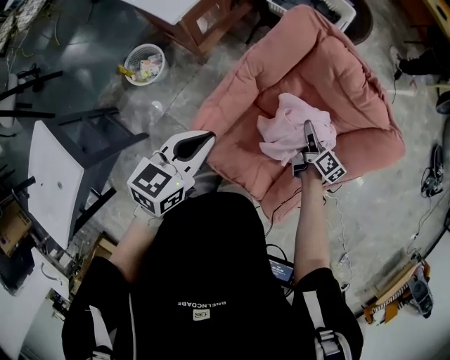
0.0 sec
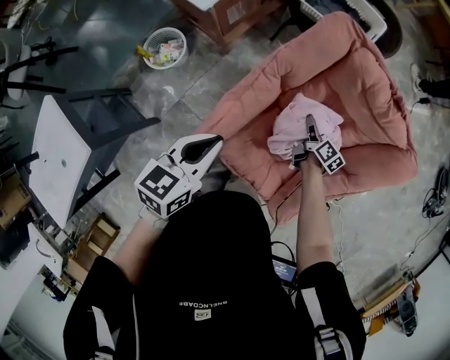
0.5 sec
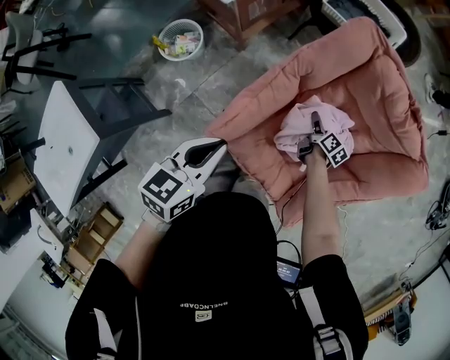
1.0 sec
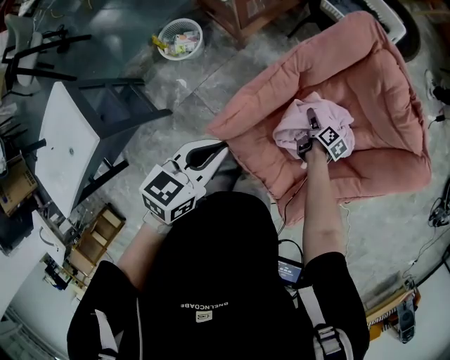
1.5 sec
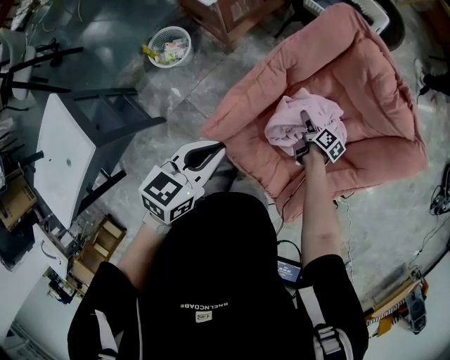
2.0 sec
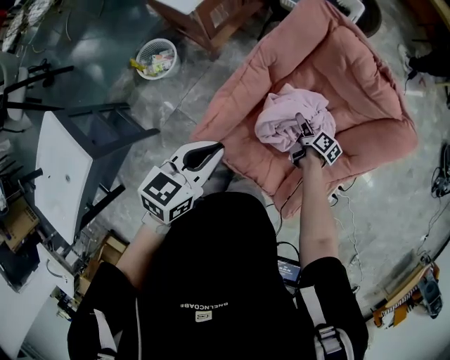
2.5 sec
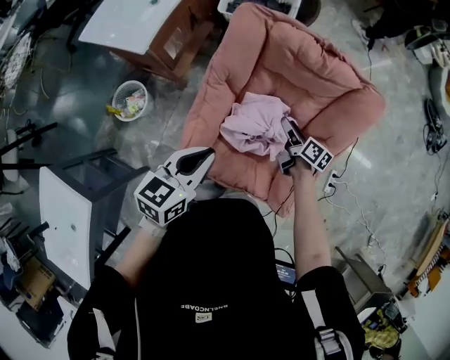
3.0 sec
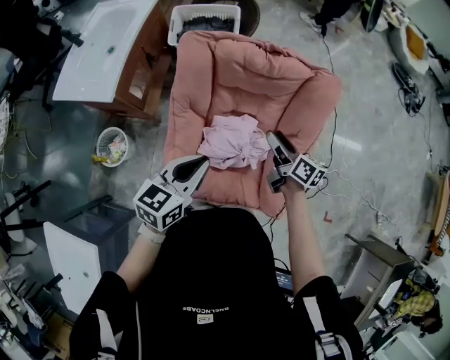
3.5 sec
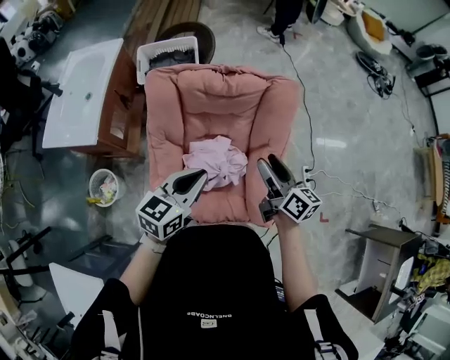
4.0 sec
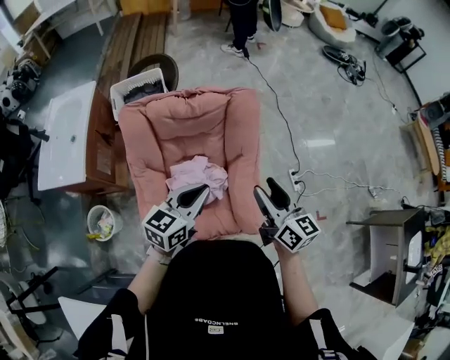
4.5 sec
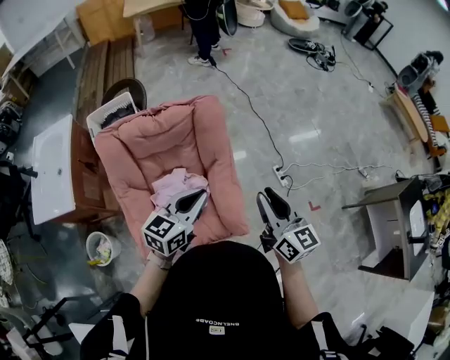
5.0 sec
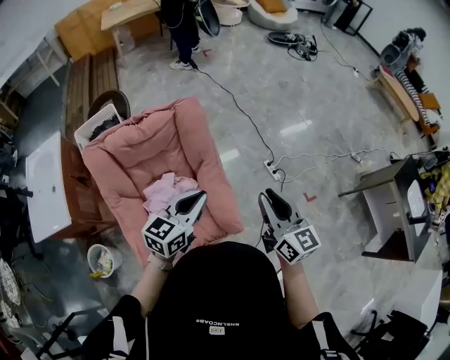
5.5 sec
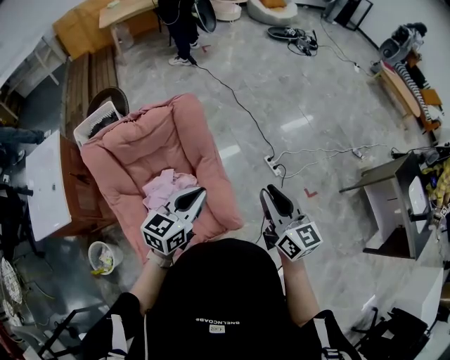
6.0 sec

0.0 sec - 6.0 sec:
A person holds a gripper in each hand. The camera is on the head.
0.0 sec - 2.0 sec: The left gripper heads backward, covering some 10 cm. The right gripper goes some 15 cm downward and to the left, and opens up.
2.0 sec - 4.0 sec: The left gripper moves approximately 25 cm, and swivels roughly 40 degrees; the right gripper heads upward, covering roughly 40 cm, and angles its fingers upward, by about 30 degrees.
4.0 sec - 6.0 sec: The two grippers go roughly 30 cm to the right. The right gripper swivels about 30 degrees, and closes its fingers. The left gripper rotates roughly 20 degrees.

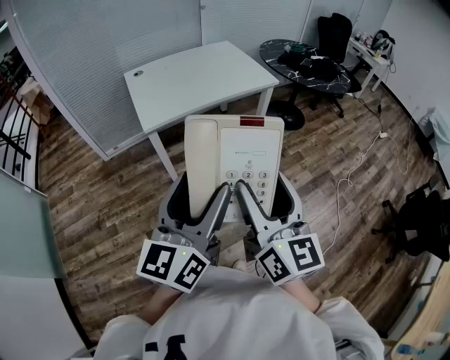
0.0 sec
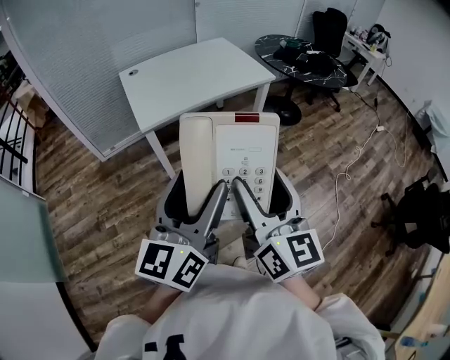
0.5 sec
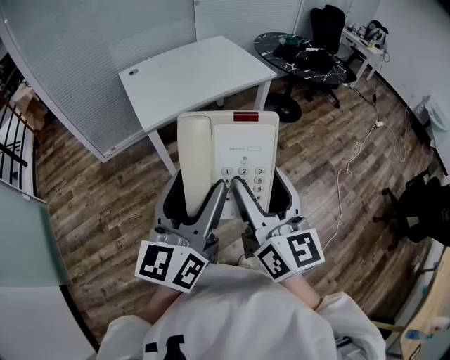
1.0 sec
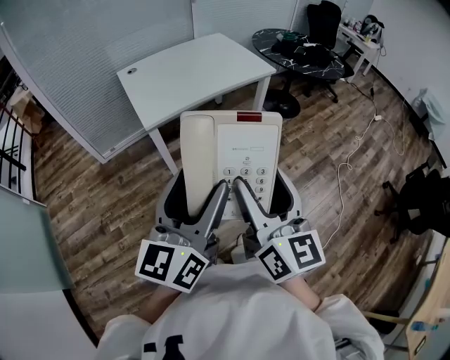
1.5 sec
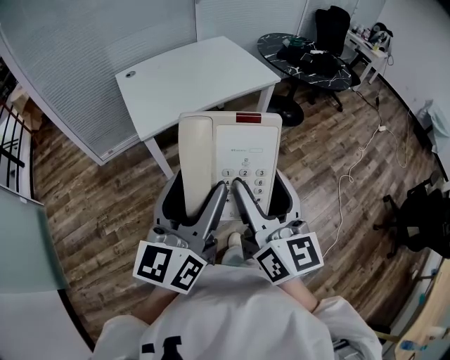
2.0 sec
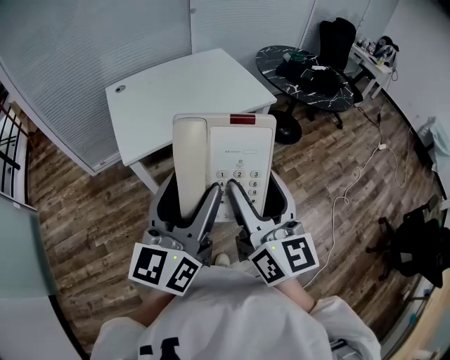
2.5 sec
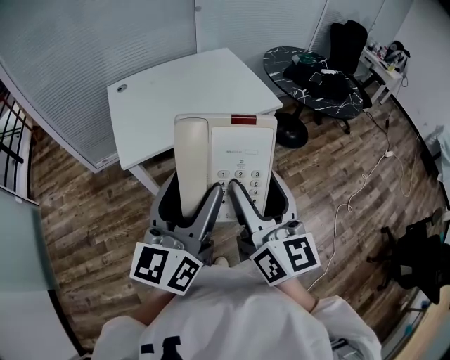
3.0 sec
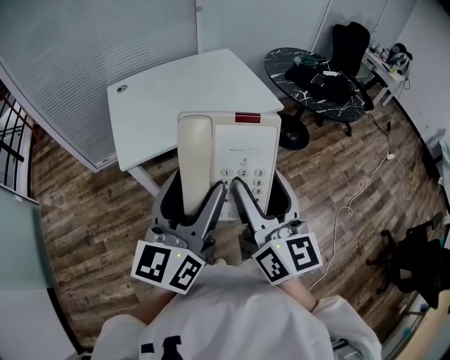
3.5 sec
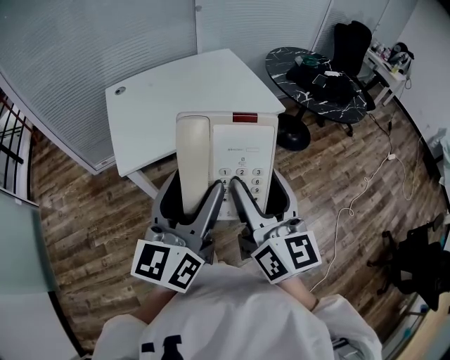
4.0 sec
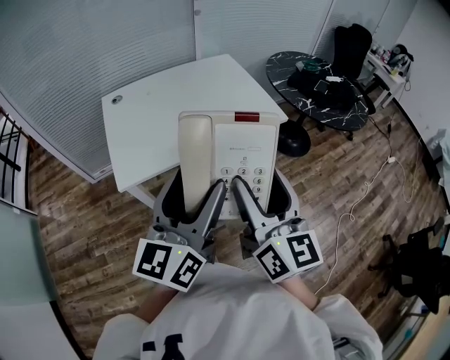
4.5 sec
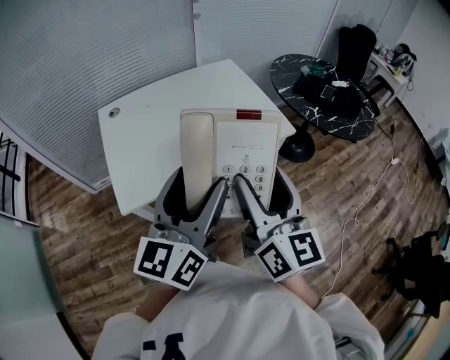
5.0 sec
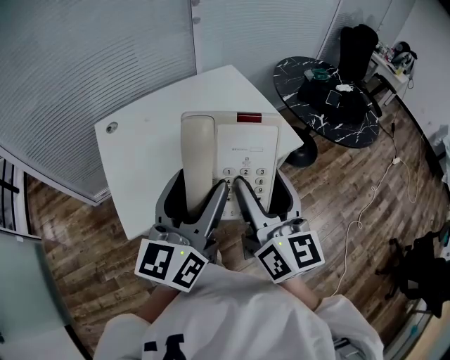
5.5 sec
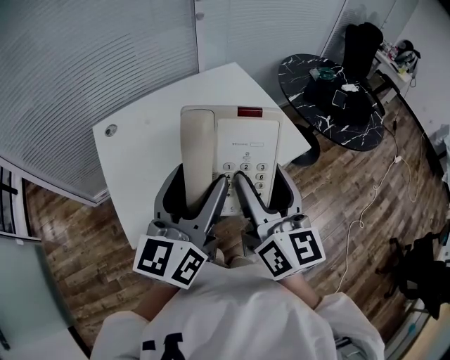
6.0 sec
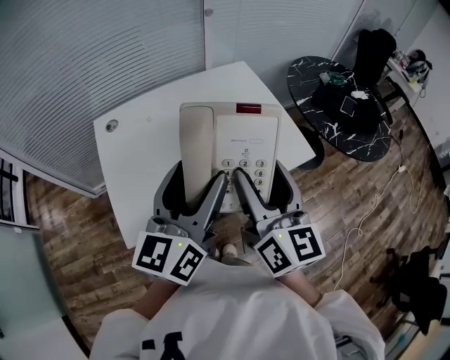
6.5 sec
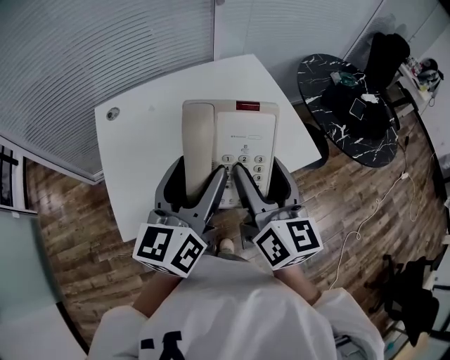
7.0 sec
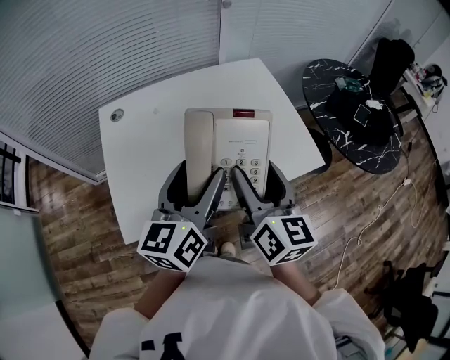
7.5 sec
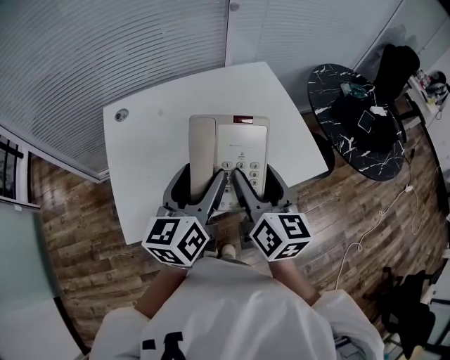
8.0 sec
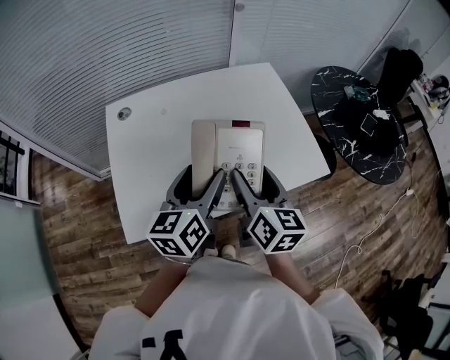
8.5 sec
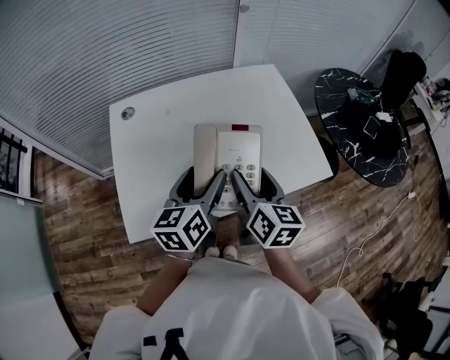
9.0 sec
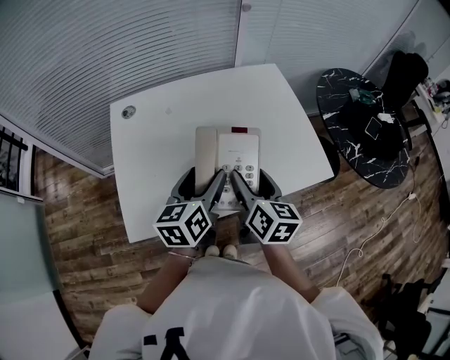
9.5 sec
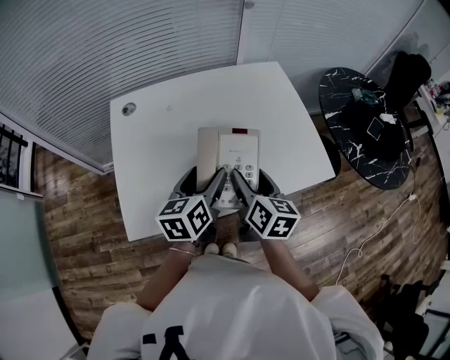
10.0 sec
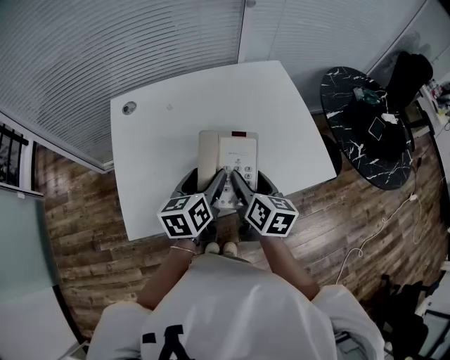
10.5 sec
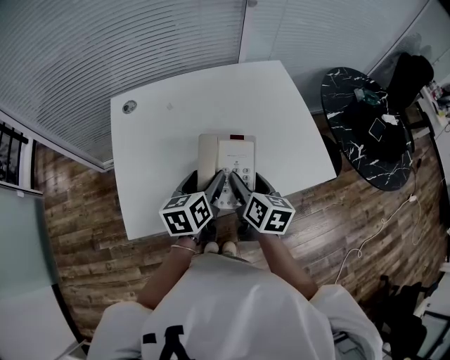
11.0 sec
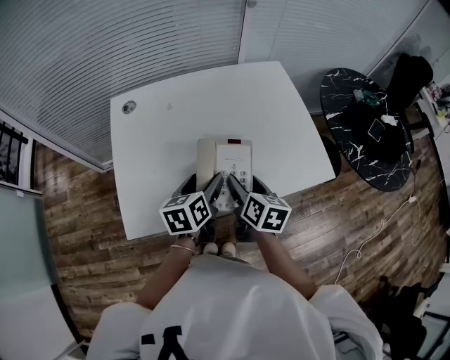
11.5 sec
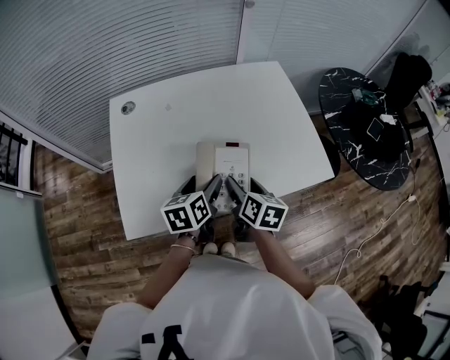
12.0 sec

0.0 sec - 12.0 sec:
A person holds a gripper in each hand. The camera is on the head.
0.0 sec - 2.0 sec: Both grippers move forward, roughly 5 cm.
2.0 sec - 4.0 sec: Both grippers move forward, approximately 20 cm.
4.0 sec - 6.0 sec: Both grippers travel together forward, some 30 cm.
6.0 sec - 8.0 sec: The right gripper shifts roughly 15 cm forward and downward. Meanwhile the left gripper is displaced downward and forward by roughly 10 cm.
8.0 sec - 10.0 sec: Both grippers move downward, some 10 cm.
10.0 sec - 12.0 sec: The two grippers go approximately 5 cm downward.

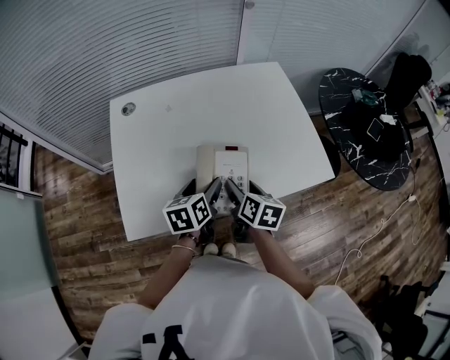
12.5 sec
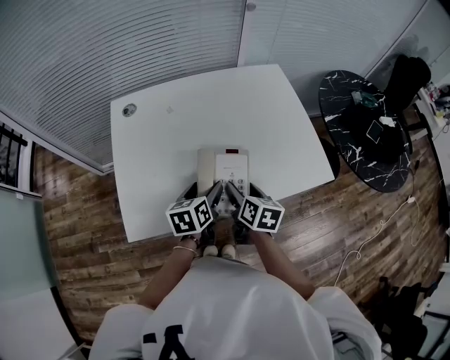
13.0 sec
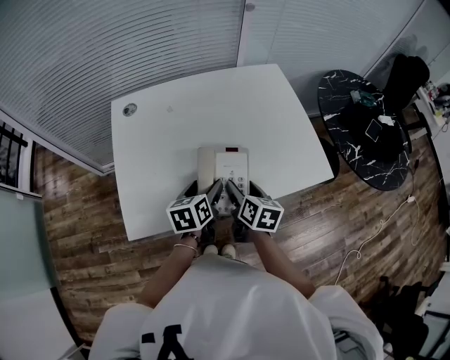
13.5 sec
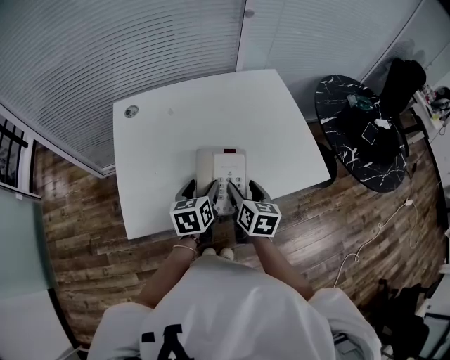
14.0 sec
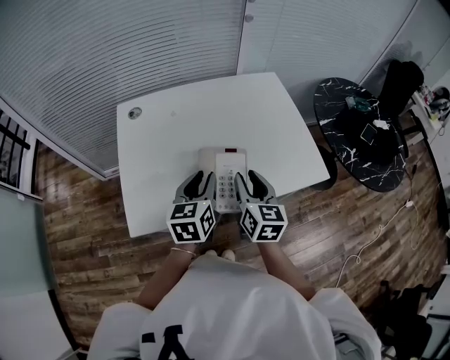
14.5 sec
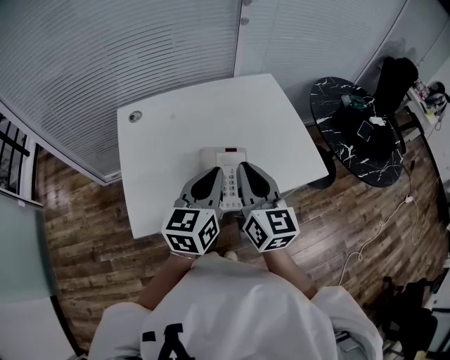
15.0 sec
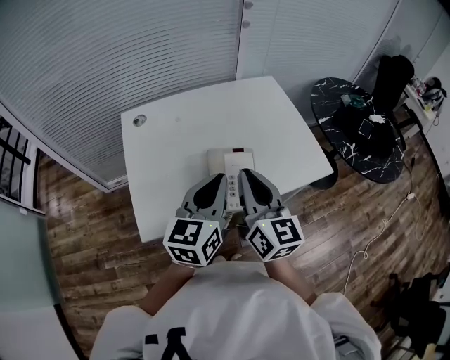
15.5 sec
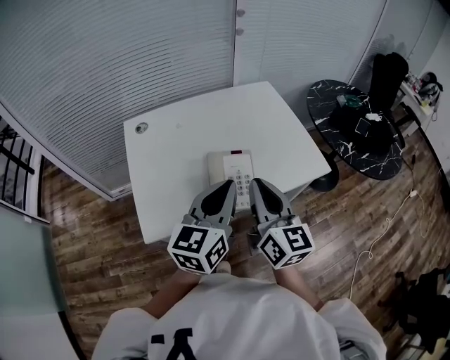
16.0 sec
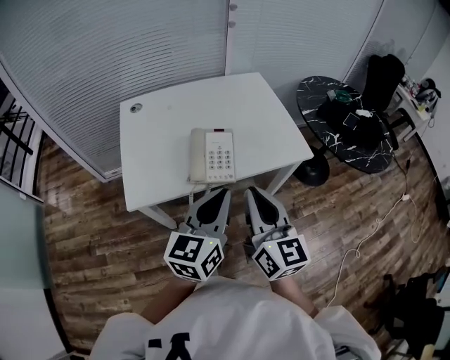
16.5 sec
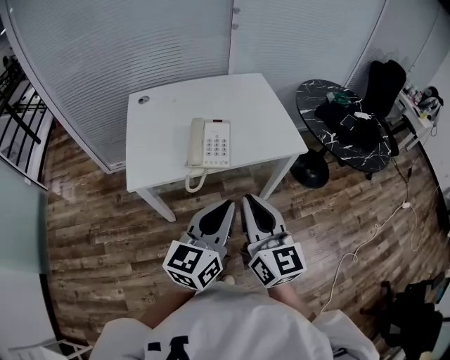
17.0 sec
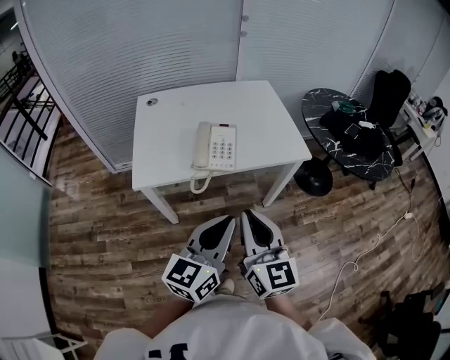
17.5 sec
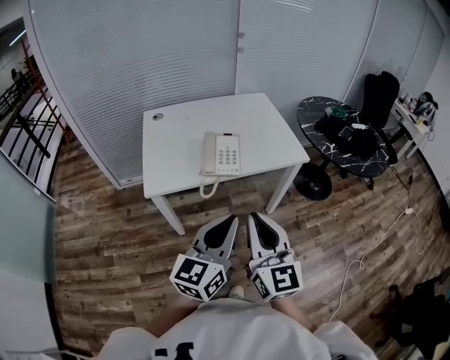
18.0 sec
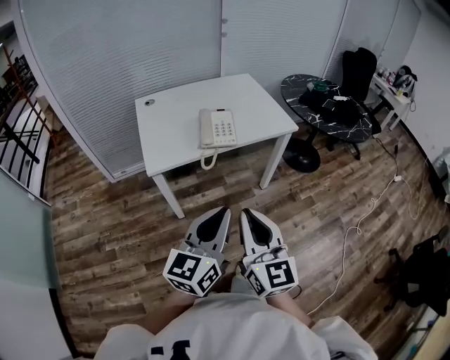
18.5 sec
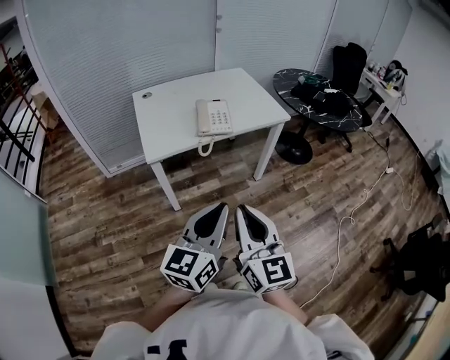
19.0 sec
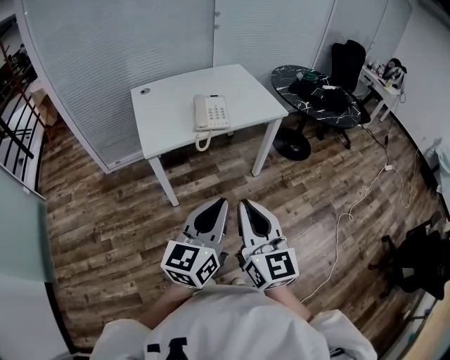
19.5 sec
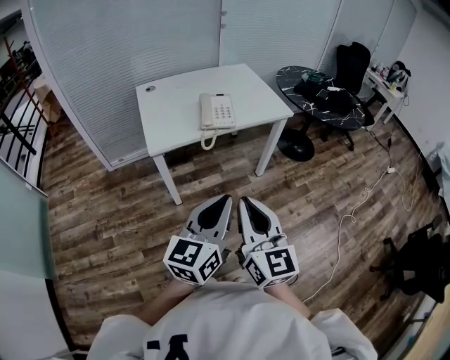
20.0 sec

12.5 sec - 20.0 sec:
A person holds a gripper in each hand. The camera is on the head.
12.5 sec - 14.5 sec: Both grippers travel together upward, roughly 10 cm. The right gripper turns by some 30 degrees, and closes. The left gripper turns by approximately 20 degrees, and closes its fingers.
14.5 sec - 16.5 sec: The left gripper is displaced backward, upward and to the right by roughly 25 cm, turns by roughly 20 degrees, and closes its fingers. Meanwhile the right gripper shifts about 25 cm backward and upward, and closes its fingers.
16.5 sec - 18.0 sec: Both grippers travel together backward, approximately 15 cm.
18.0 sec - 20.0 sec: The grippers both shift backward by roughly 20 cm.

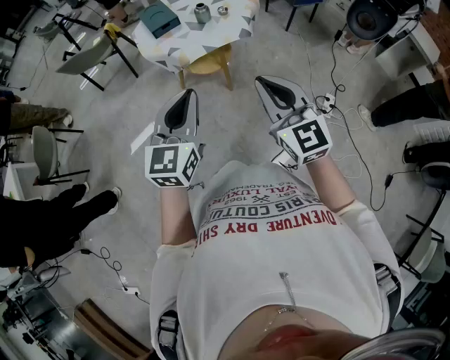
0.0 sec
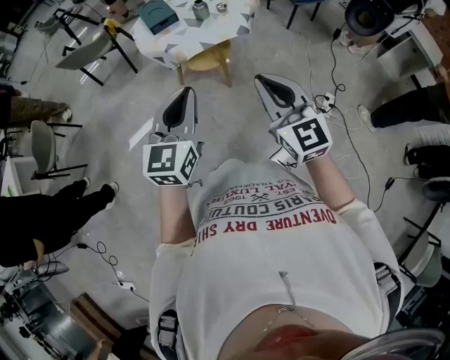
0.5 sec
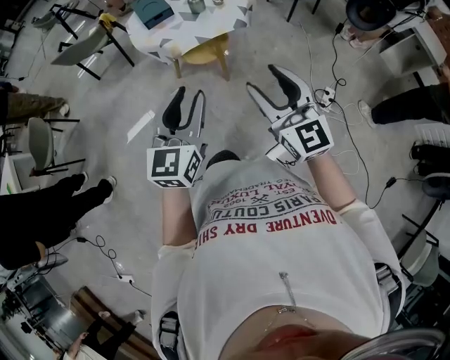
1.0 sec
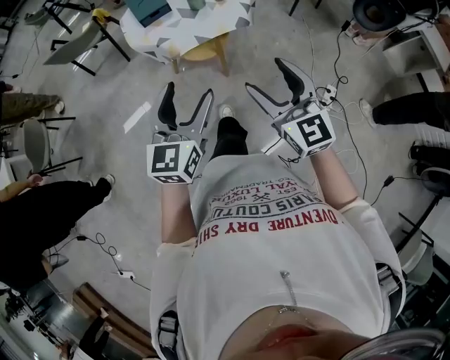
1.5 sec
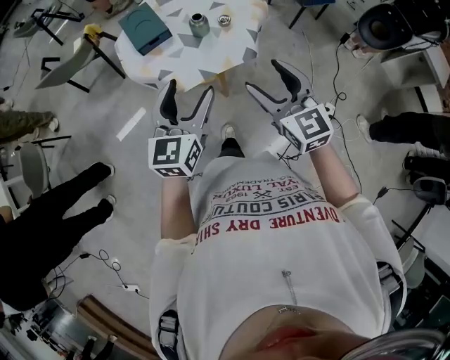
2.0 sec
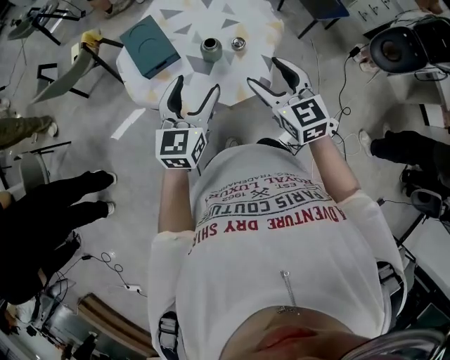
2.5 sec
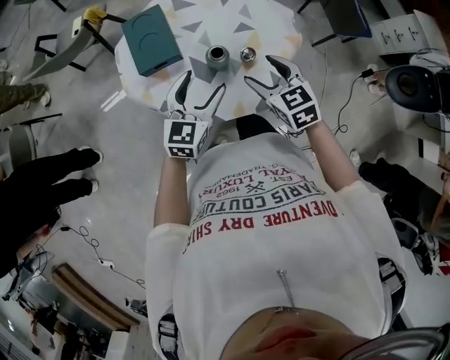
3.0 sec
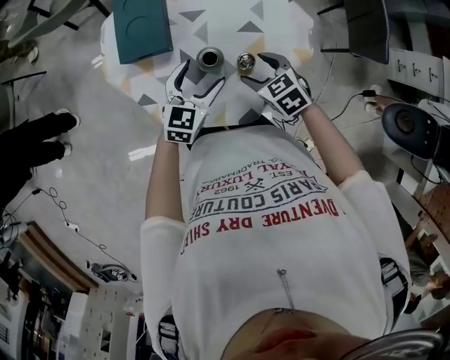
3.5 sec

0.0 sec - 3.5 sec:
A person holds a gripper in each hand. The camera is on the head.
0.0 sec - 2.0 sec: The two grippers go approximately 25 cm forward. The right gripper opens its fingers, while the left gripper opens.
2.0 sec - 3.5 sec: The right gripper moves roughly 40 cm, and tilts its fingers roughly 40 degrees downward; the left gripper moves about 40 cm, and swivels some 20 degrees.
